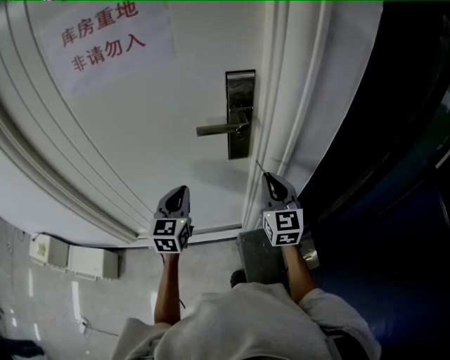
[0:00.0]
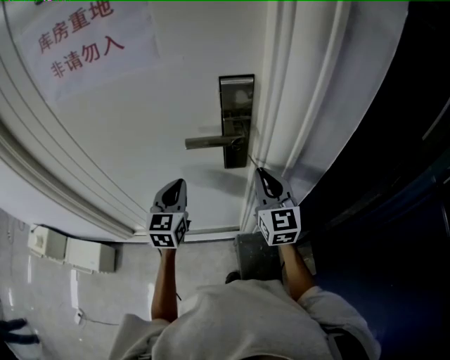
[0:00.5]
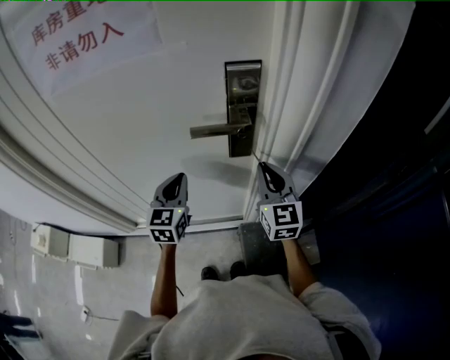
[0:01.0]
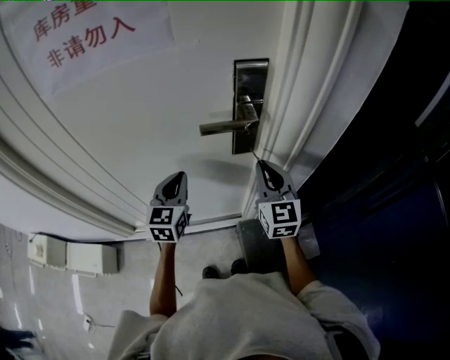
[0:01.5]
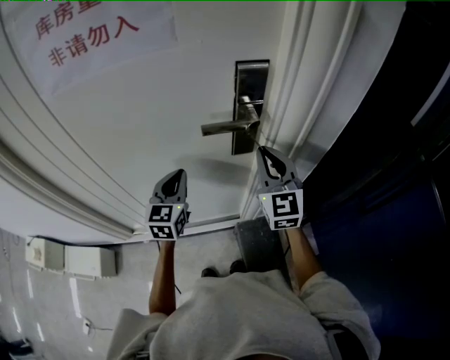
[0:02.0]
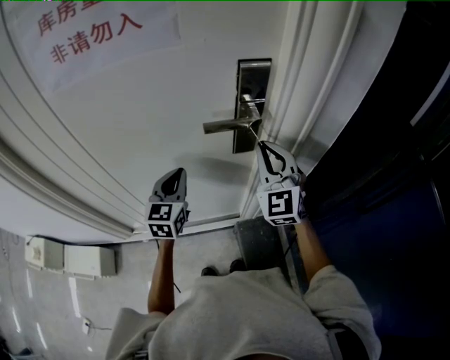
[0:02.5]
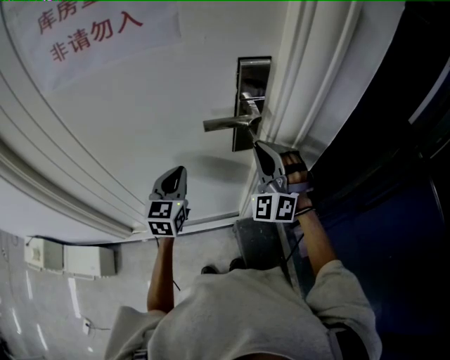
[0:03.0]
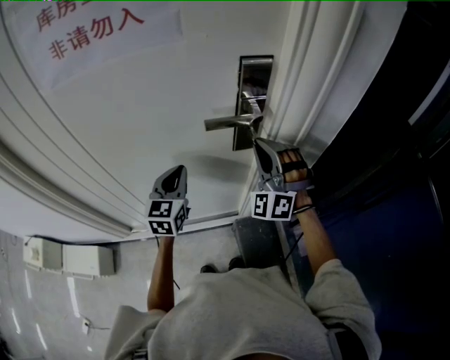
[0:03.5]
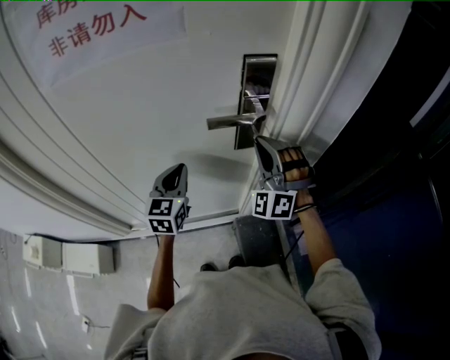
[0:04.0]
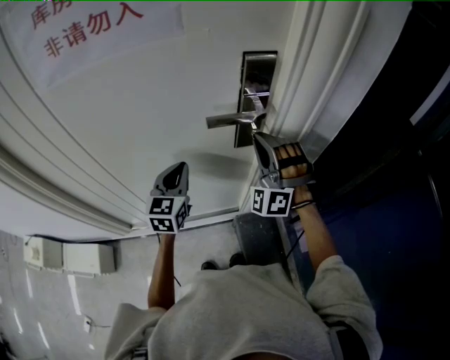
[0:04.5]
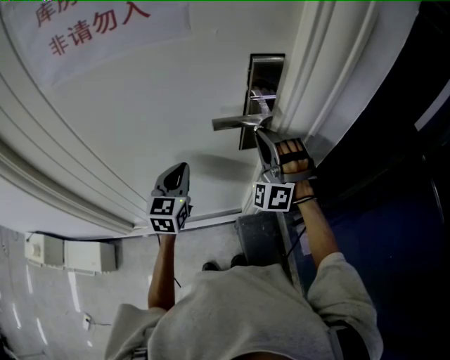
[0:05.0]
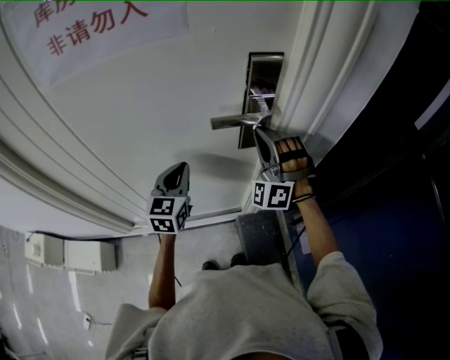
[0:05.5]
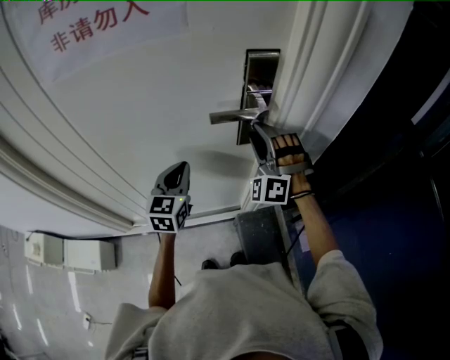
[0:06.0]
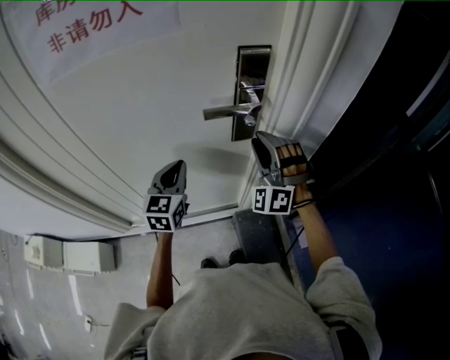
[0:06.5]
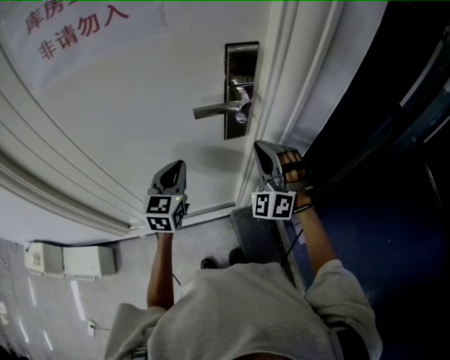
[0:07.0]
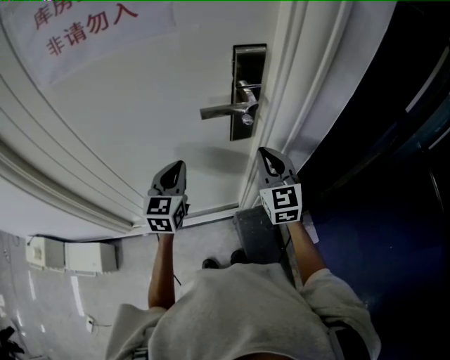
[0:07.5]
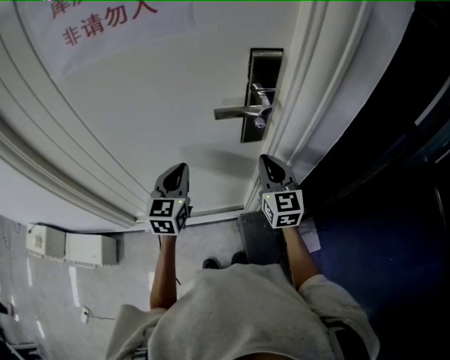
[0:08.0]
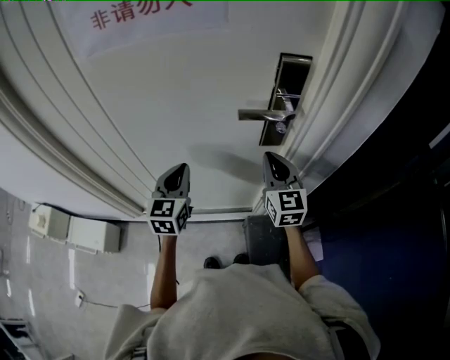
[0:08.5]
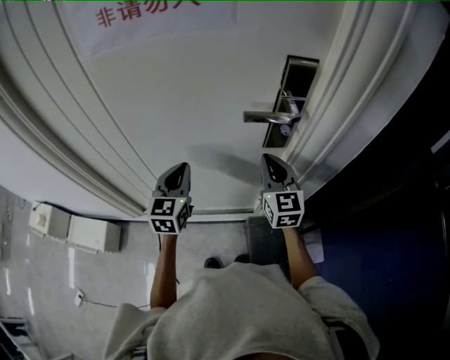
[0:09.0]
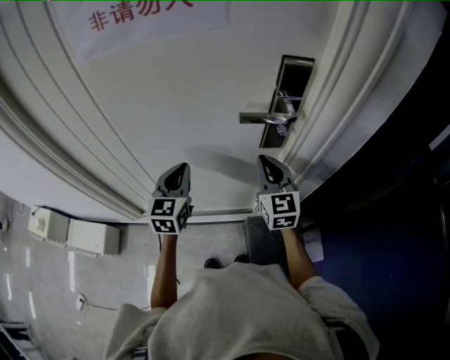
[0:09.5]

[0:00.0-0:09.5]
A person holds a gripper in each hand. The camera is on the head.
0:00.0 to 0:02.0: Both grippers travel together forward, some 5 cm.
0:02.0 to 0:04.0: The right gripper rotates around the line of its fingers by approximately 60 degrees, counterclockwise from behind.
0:04.0 to 0:05.5: There are only small adjustments of the grippers.
0:05.5 to 0:07.5: The right gripper moves backward, about 5 cm, twists about 70 degrees clockwise, seen from behind, and opens, then closes once more.
0:07.5 to 0:09.5: The grippers both shift to the left by roughly 5 cm.

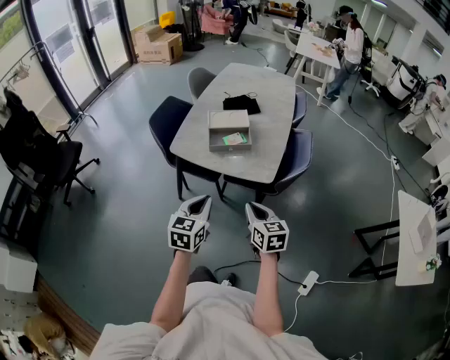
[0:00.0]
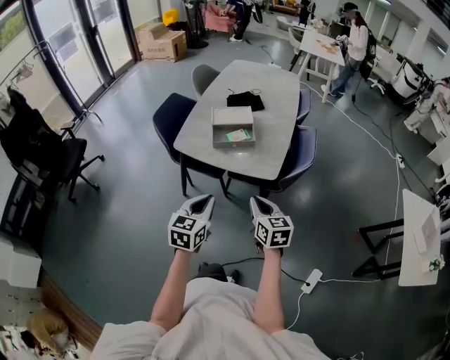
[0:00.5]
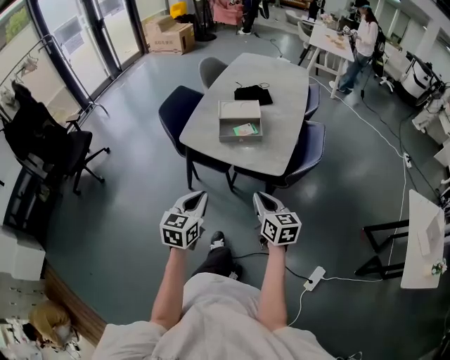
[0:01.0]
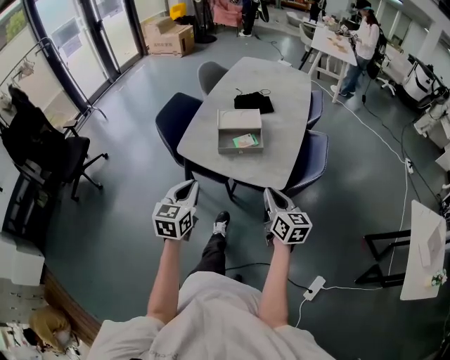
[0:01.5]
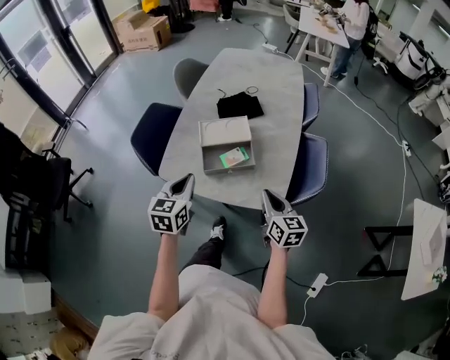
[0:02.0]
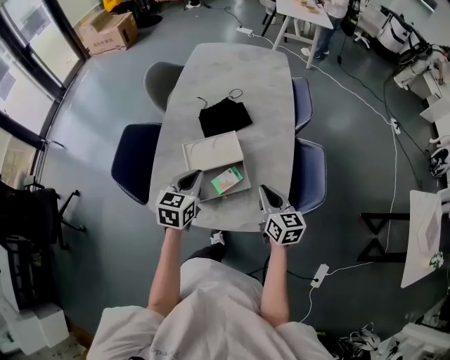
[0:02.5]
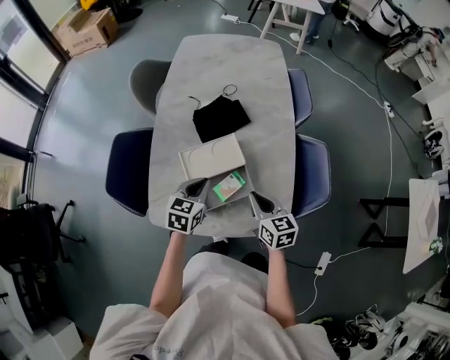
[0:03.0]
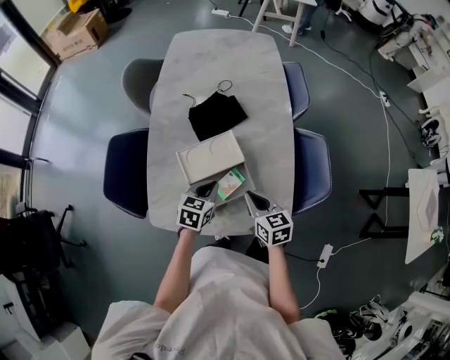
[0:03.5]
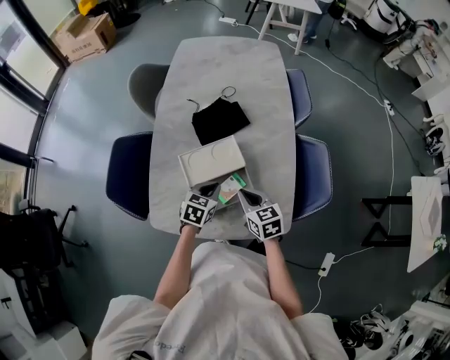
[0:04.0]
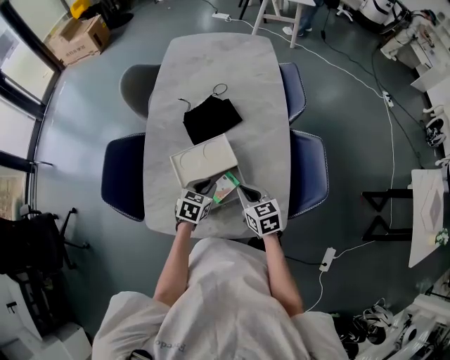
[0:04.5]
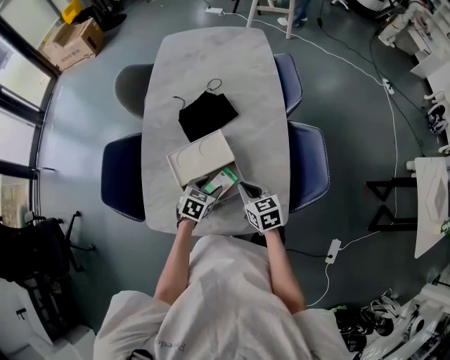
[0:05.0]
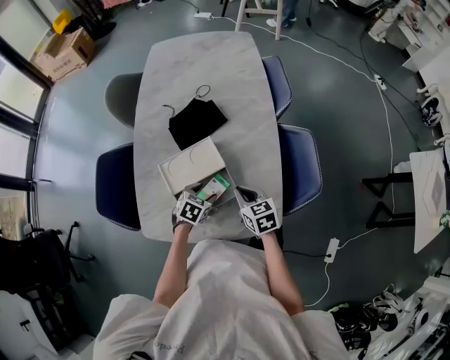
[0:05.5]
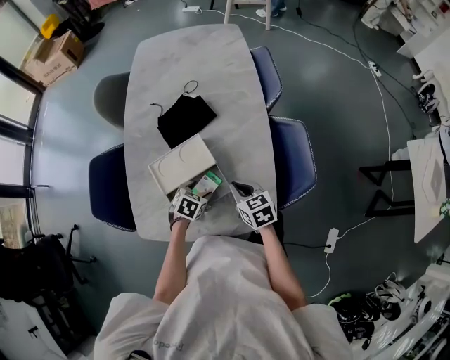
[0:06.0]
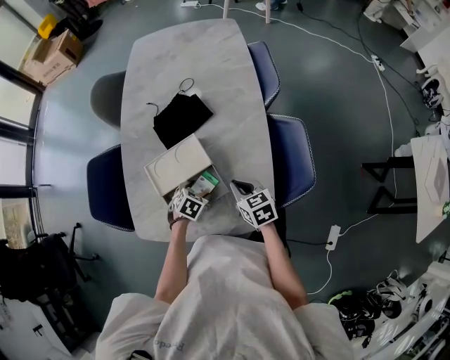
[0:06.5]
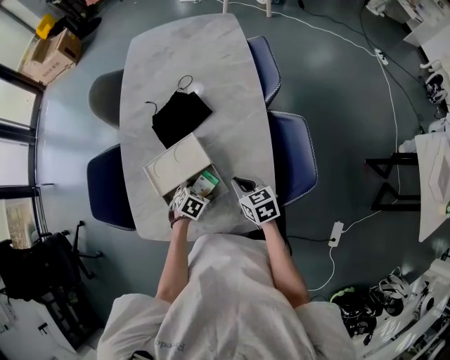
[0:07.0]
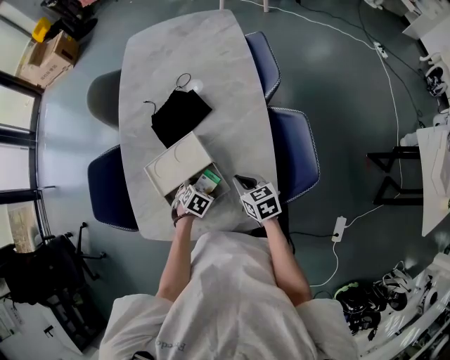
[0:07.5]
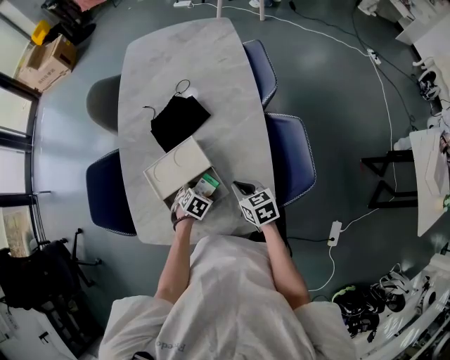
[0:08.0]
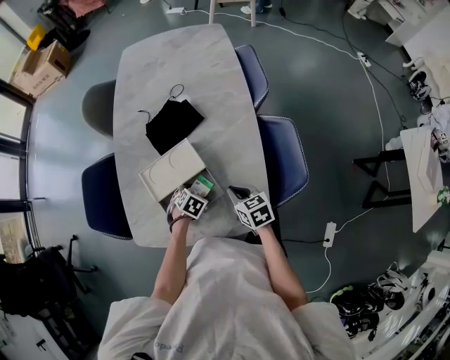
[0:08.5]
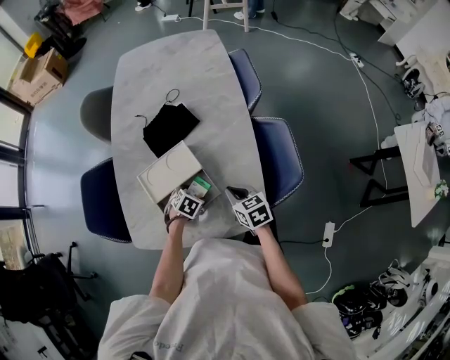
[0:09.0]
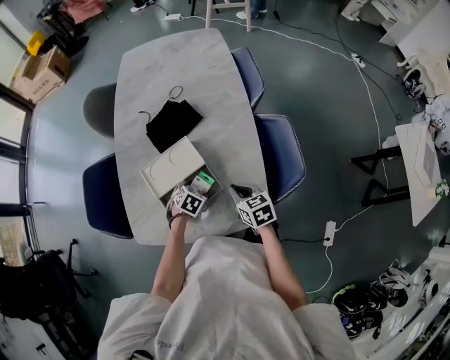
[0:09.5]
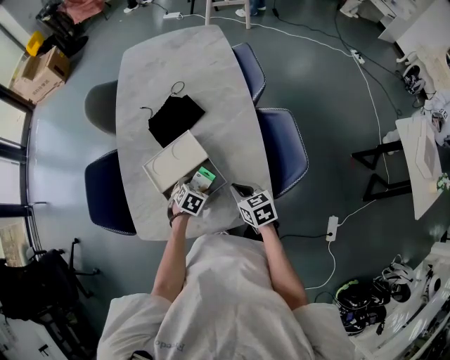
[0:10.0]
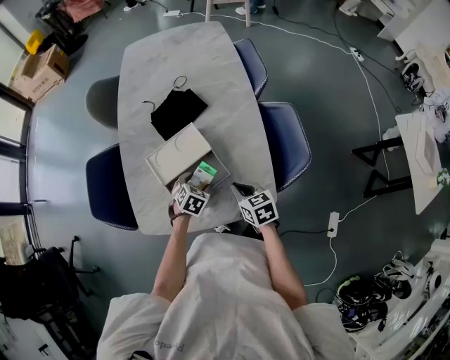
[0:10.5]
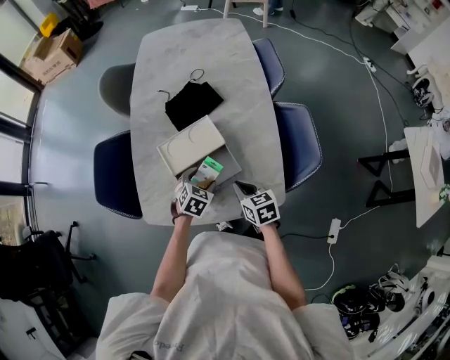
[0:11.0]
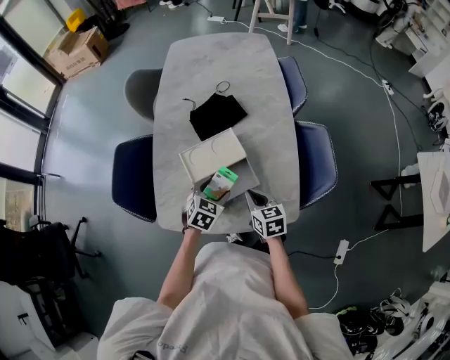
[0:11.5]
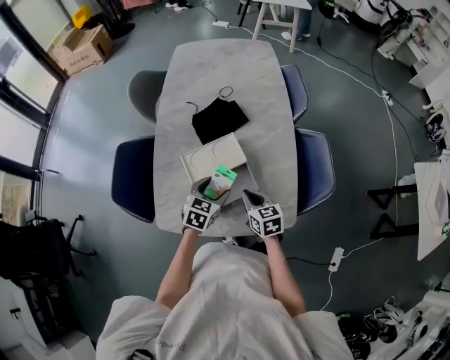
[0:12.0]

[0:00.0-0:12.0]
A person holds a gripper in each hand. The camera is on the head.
0:00.0 to 0:02.0: The two grippers go some 25 cm forward.
0:02.0 to 0:04.0: The right gripper goes roughly 20 cm forward, to the left and downward. Meanwhile the left gripper moves forward and downward, roughly 25 cm, and swivels about 40 degrees.
0:04.0 to 0:06.0: The left gripper shifts approximately 10 cm downward, turns by some 20 degrees, and opens up. Meanwhile the right gripper travels to the right by some 5 cm.
0:06.0 to 0:08.0: The grippers make only small movements.
0:08.0 to 0:10.0: The right gripper heads backward, covering approximately 5 cm.
0:10.0 to 0:12.0: The right gripper goes approximately 10 cm to the left, while the left gripper goes about 10 cm upward and to the left, and rotates some 30 degrees.

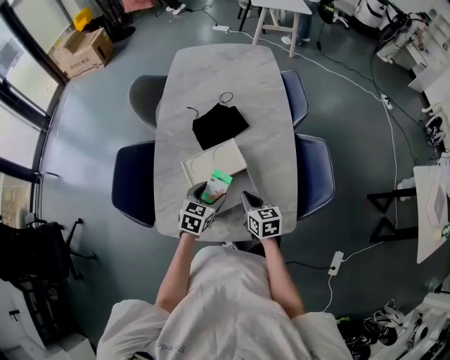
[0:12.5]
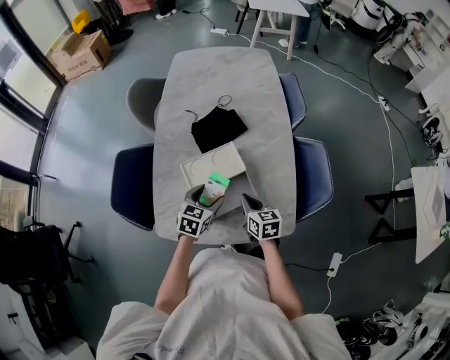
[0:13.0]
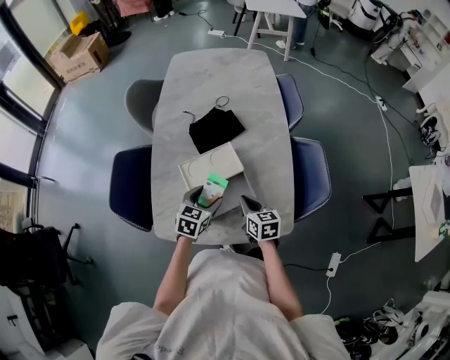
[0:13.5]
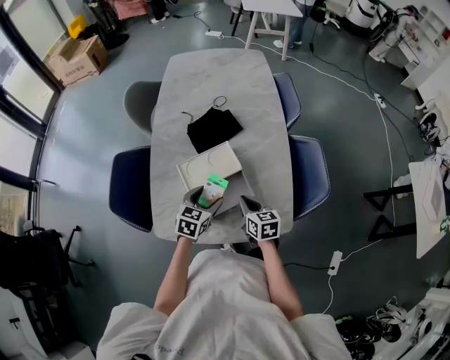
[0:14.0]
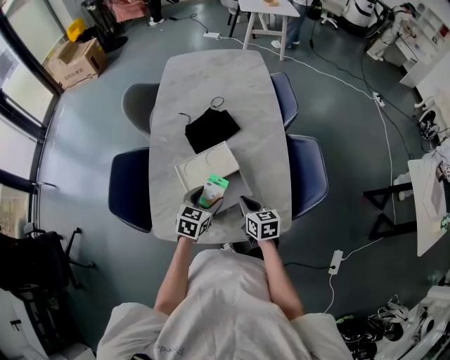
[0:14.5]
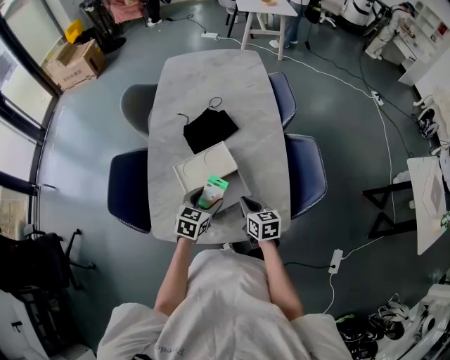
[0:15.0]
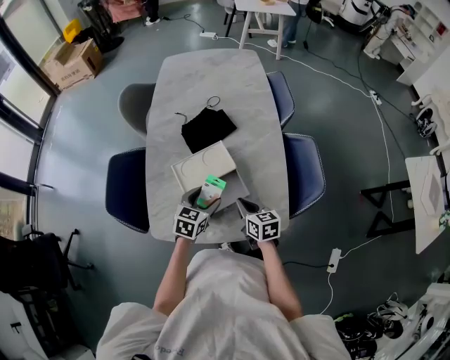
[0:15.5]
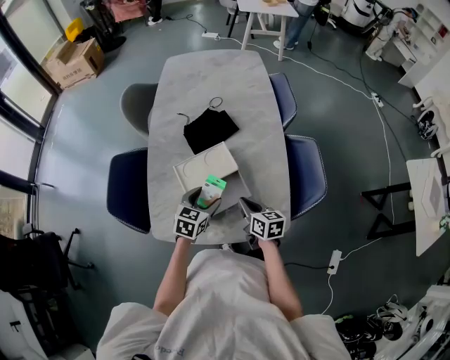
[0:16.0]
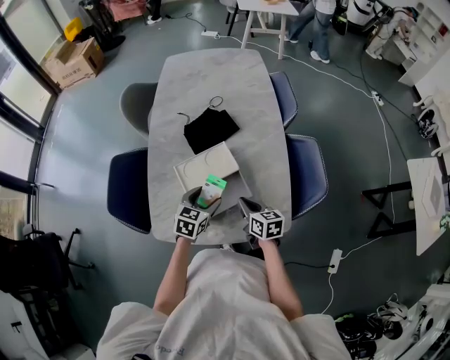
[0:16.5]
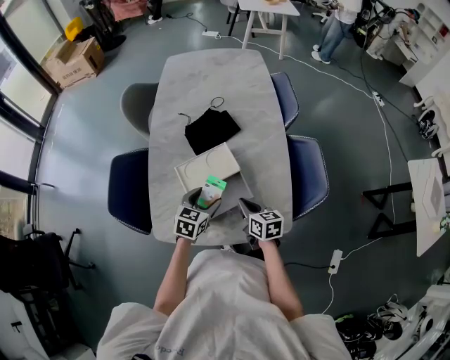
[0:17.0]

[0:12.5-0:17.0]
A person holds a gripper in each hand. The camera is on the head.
0:12.5 to 0:17.0: The grippers make only small movements.

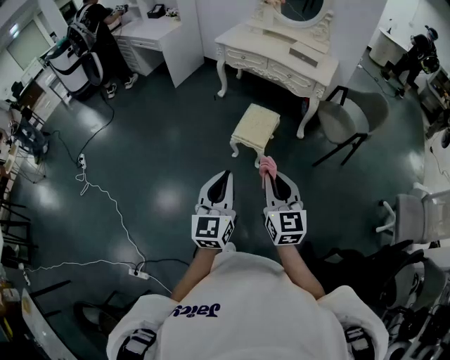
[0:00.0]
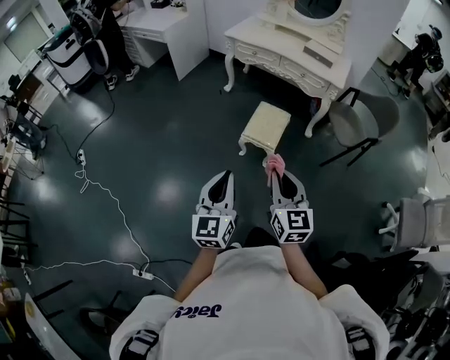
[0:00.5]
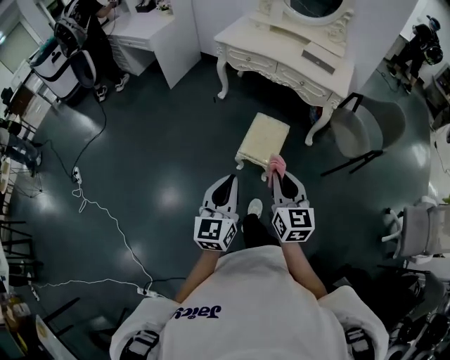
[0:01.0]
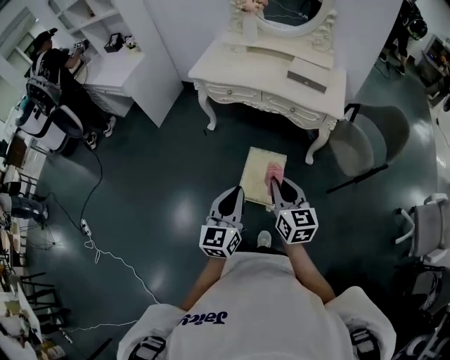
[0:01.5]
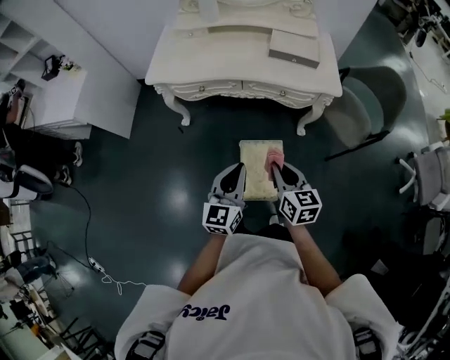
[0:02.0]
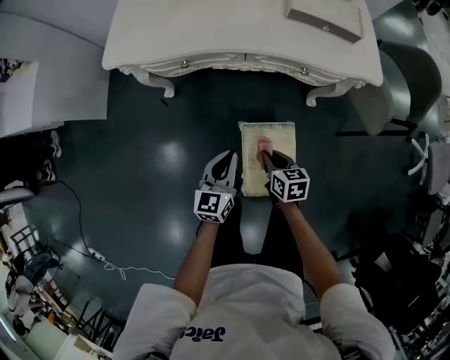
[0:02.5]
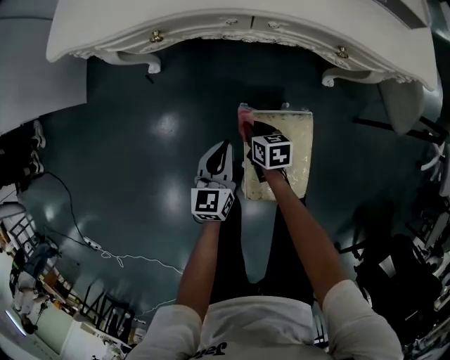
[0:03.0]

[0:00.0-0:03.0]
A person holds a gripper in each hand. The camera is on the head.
0:00.0 to 0:01.5: Both grippers travel together upward, roughly 40 cm.
0:01.5 to 0:03.0: The two grippers travel together, about 60 cm. The left gripper changes its angle by some 30 degrees. Meanwhile the right gripper changes its angle by approximately 50 degrees.
